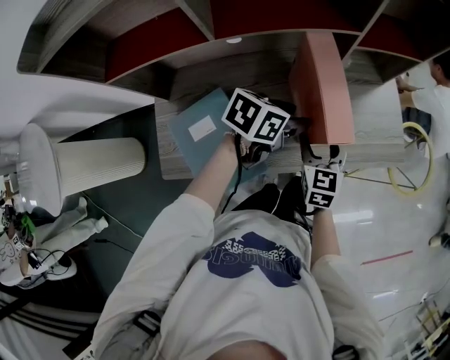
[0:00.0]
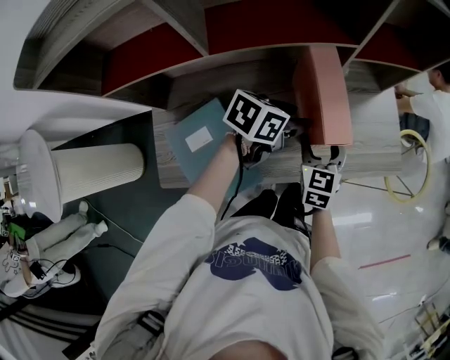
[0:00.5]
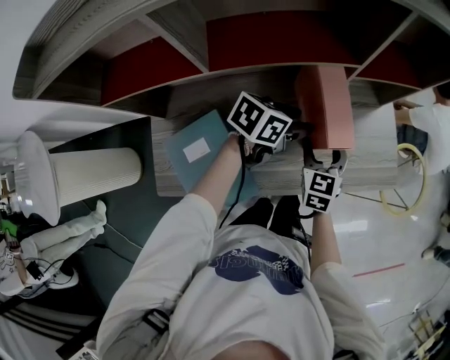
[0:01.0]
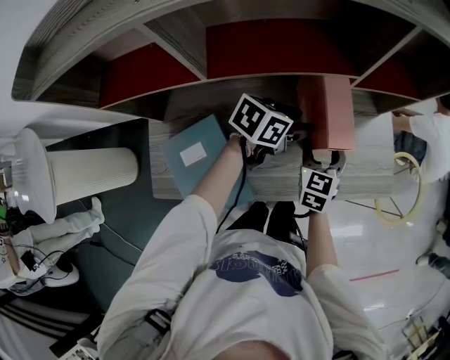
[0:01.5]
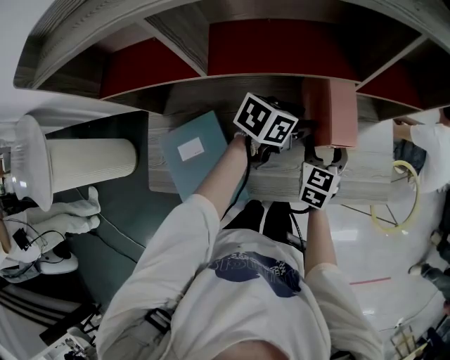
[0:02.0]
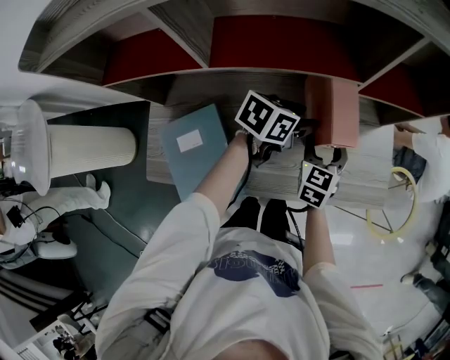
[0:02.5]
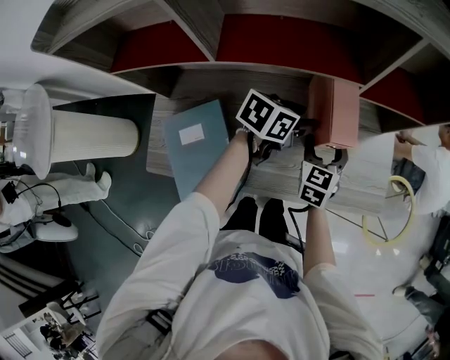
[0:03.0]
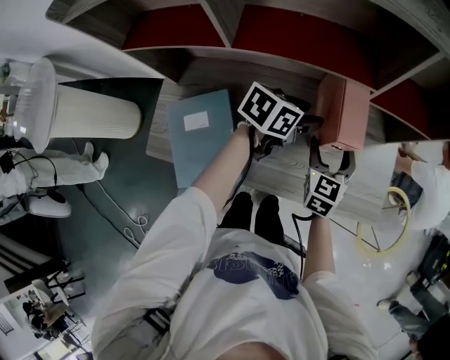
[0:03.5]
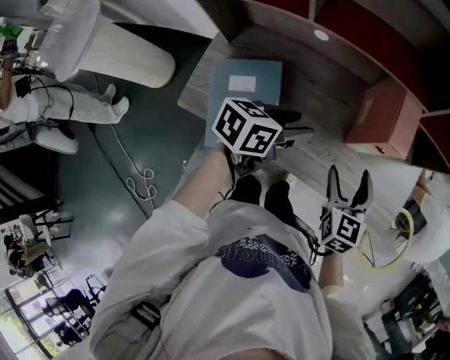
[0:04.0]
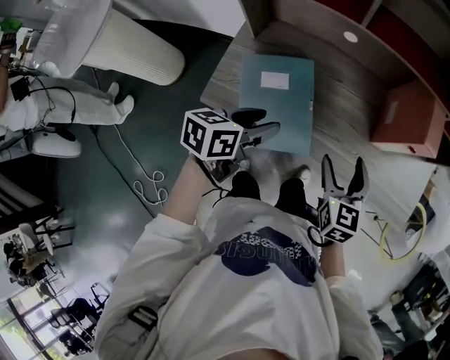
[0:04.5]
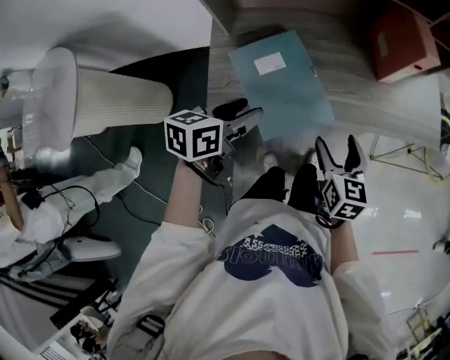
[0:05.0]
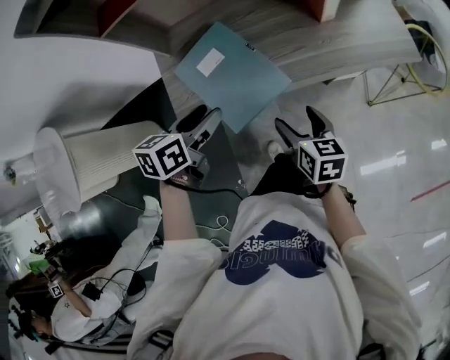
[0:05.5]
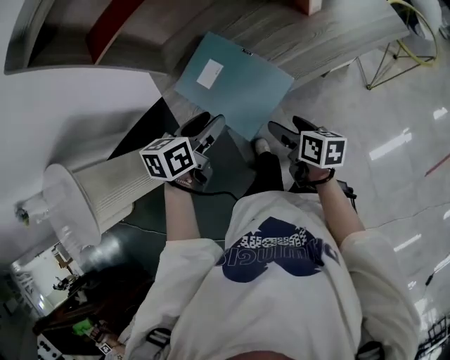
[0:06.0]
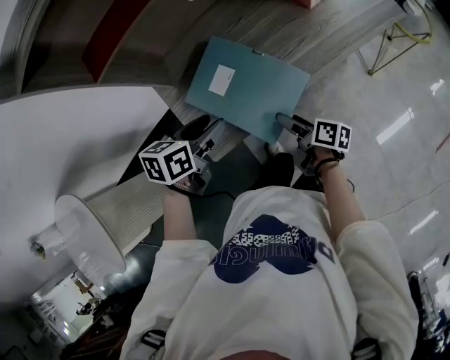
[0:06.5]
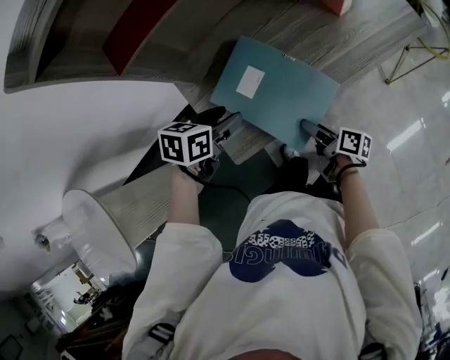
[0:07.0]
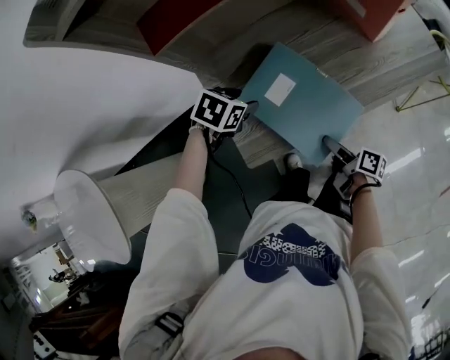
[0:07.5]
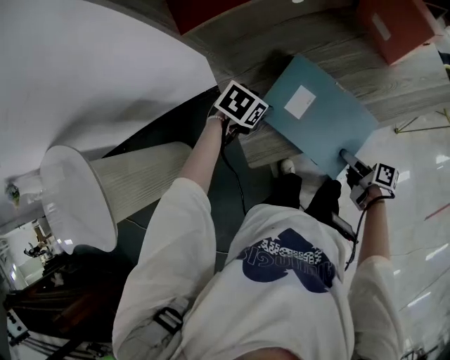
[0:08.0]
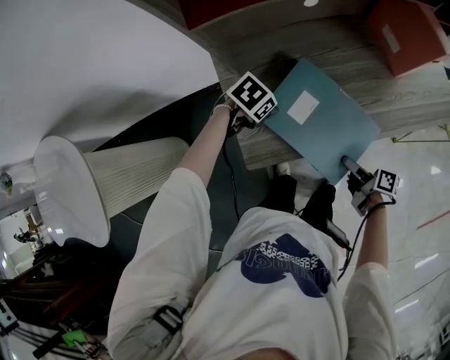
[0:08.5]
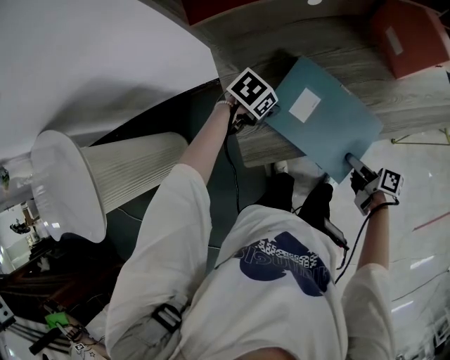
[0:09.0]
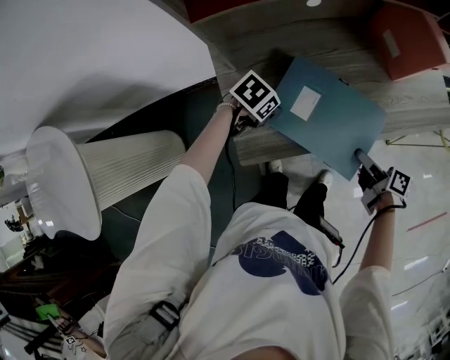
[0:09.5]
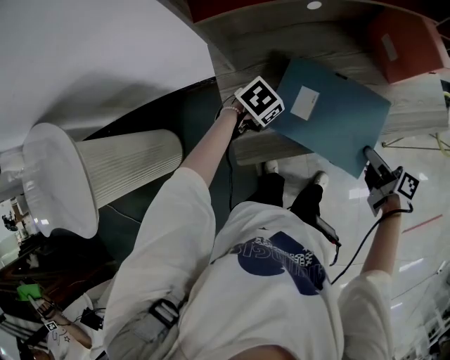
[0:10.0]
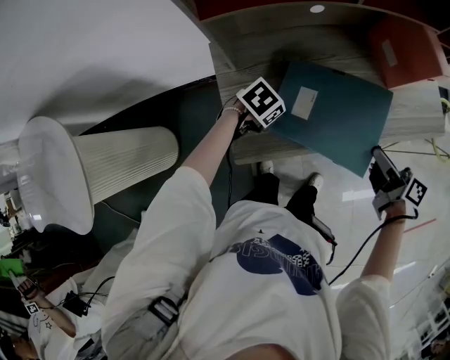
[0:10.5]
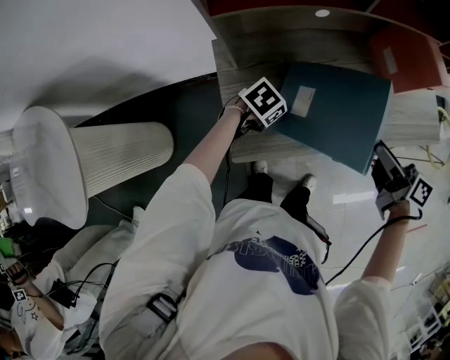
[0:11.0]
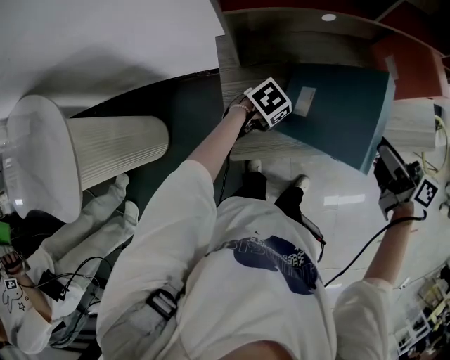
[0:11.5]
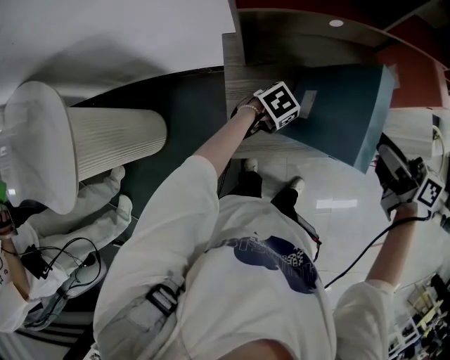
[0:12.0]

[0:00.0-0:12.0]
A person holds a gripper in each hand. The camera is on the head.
0:00.0 to 0:02.0: The grippers both shift forward by some 10 cm.
0:02.0 to 0:04.0: The right gripper shifts by approximately 15 cm, and rotates about 30 degrees. Meanwhile the left gripper changes place by roughly 20 cm, and rotates some 30 degrees.
0:04.0 to 0:06.0: The right gripper travels backward, to the left and downward by roughly 35 cm, and twists about 60 degrees clockwise, seen from behind, while the left gripper shifts about 30 cm to the left and backward, and changes its angle by about 20 degrees.
0:06.0 to 0:08.0: The right gripper travels downward by some 5 cm. Meanwhile the left gripper heads to the left, downward and forward, covering roughly 20 cm, and changes its angle by about 40 degrees.
0:08.0 to 0:10.0: The right gripper travels upward by some 10 cm.
0:10.0 to 0:12.0: The right gripper moves upward, about 20 cm, and turns by about 30 degrees.

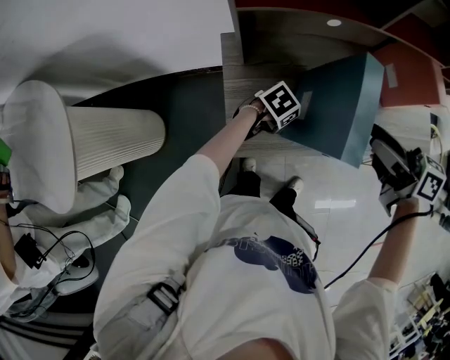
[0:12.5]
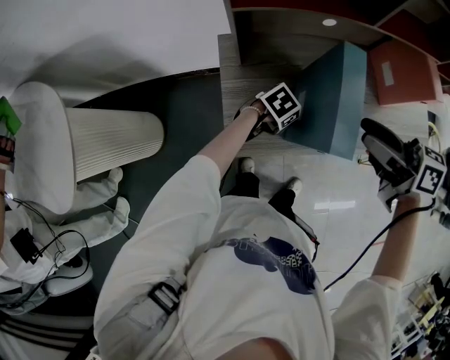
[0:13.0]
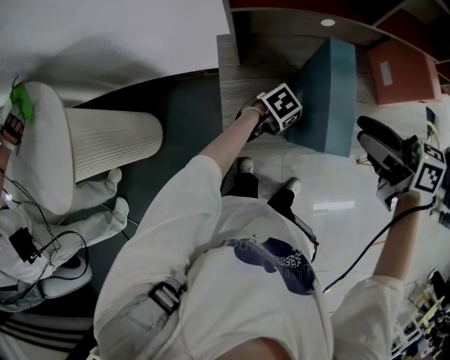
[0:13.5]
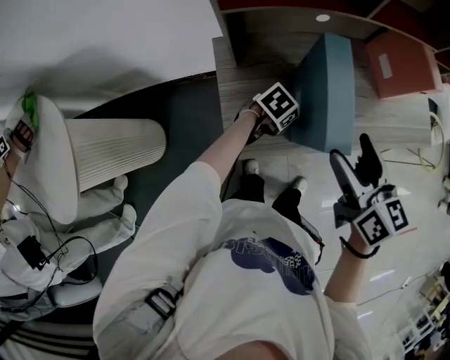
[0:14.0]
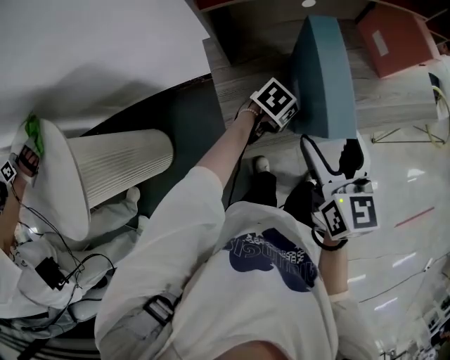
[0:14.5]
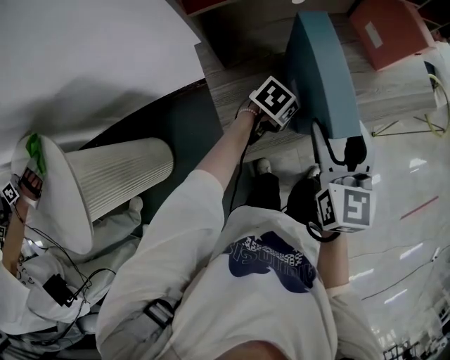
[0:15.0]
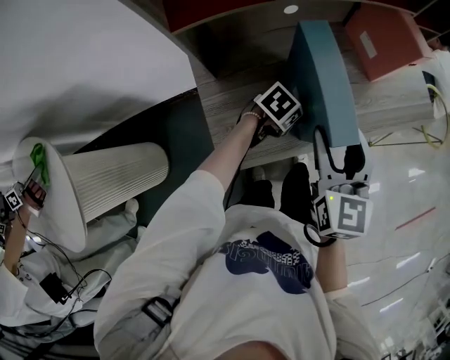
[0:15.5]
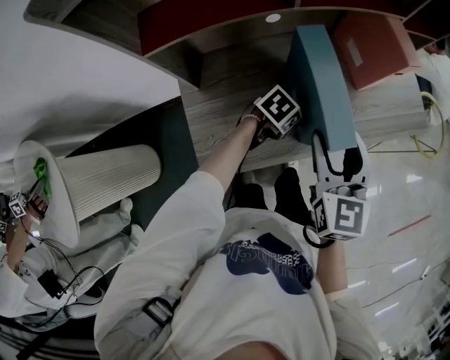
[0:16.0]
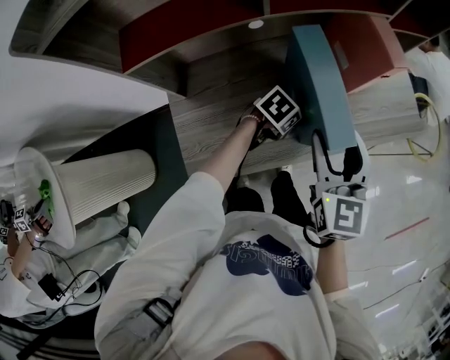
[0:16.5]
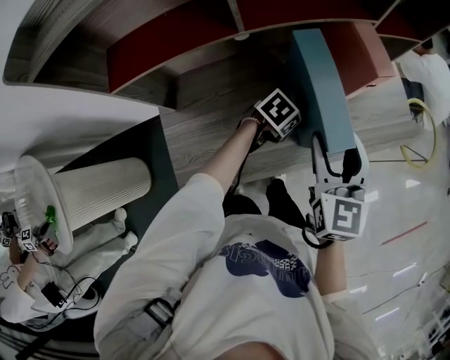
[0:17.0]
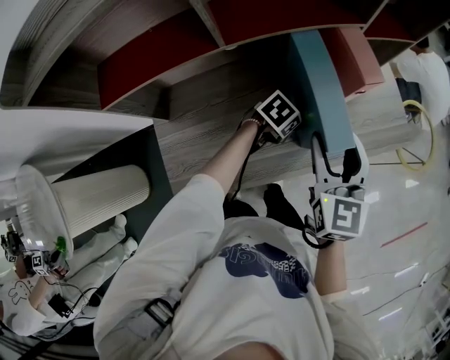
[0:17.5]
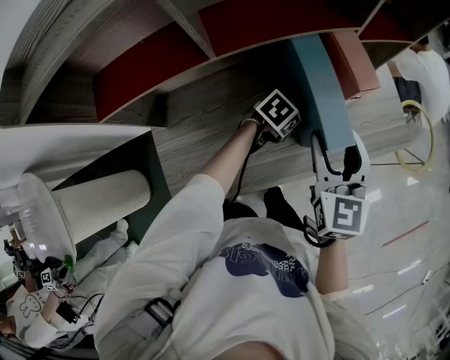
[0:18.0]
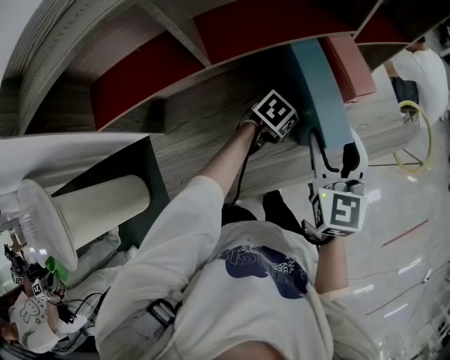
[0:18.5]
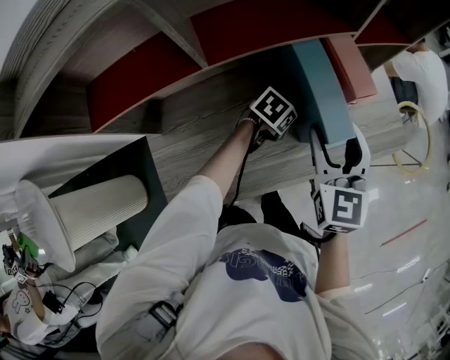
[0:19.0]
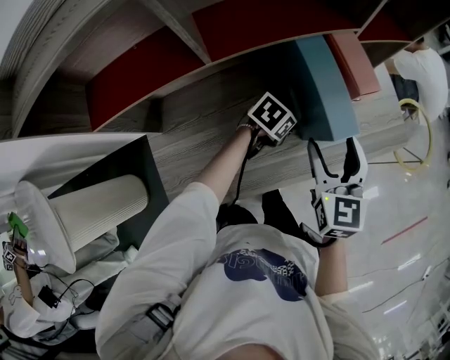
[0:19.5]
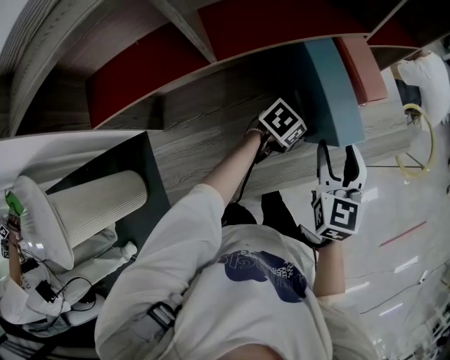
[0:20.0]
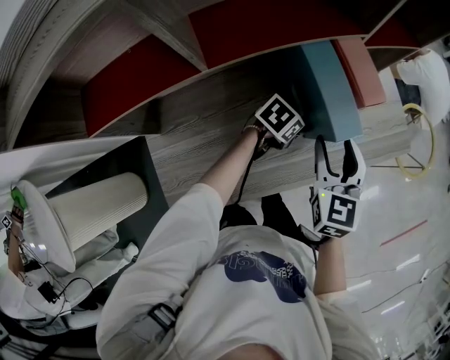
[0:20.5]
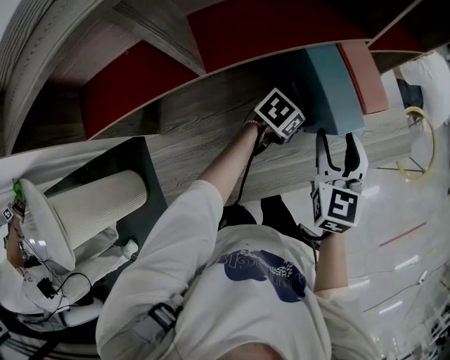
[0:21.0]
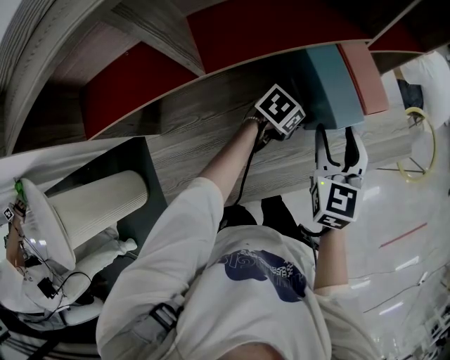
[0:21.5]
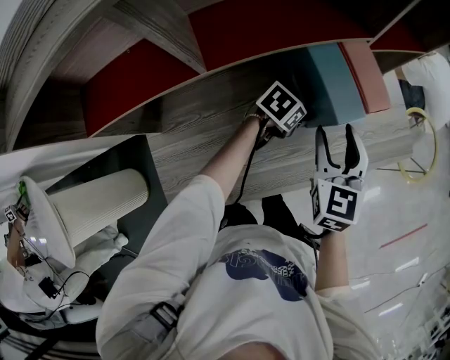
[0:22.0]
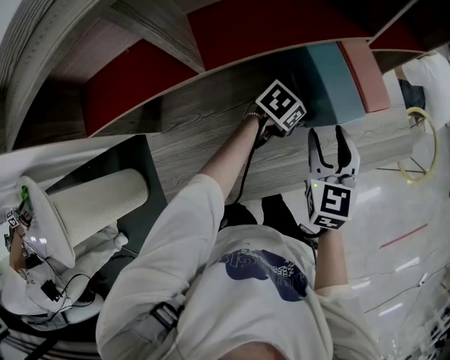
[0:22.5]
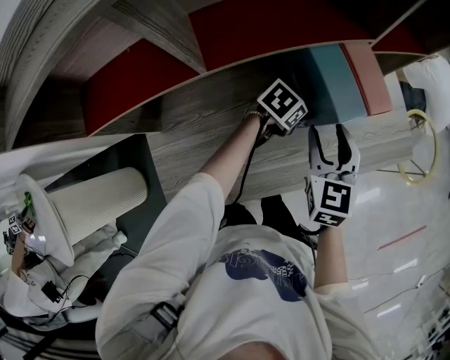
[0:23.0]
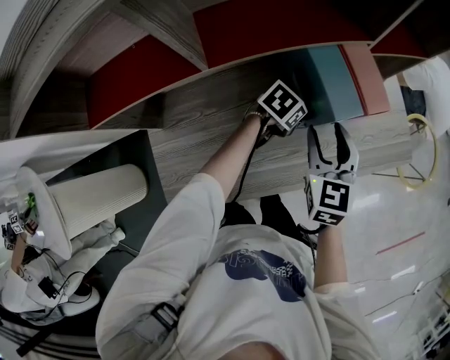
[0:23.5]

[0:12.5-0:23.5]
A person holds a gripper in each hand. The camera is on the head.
0:12.5 to 0:14.5: The right gripper changes place by about 10 cm, turns by approximately 50 degrees, and opens its fingers.
0:14.5 to 0:16.0: The grippers both shift forward and to the right by some 15 cm.
0:16.0 to 0:18.0: Both grippers travel together forward, approximately 15 cm.
0:18.0 to 0:20.0: The right gripper shifts some 5 cm downward.
0:20.0 to 0:21.5: The left gripper changes place by approximately 5 cm. The right gripper ends up roughly 5 cm from where it was.
0:21.5 to 0:23.5: The grippers move only a little.

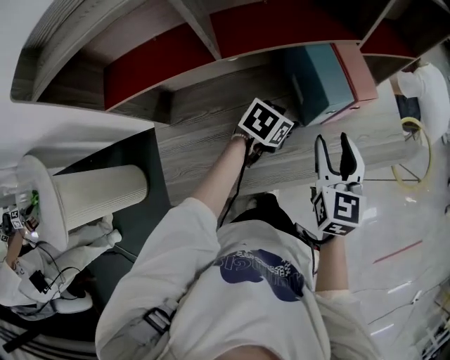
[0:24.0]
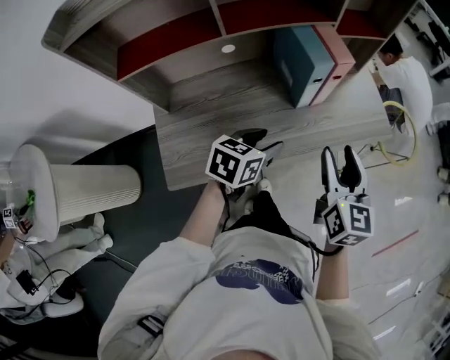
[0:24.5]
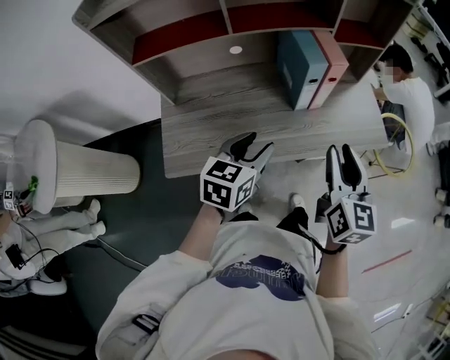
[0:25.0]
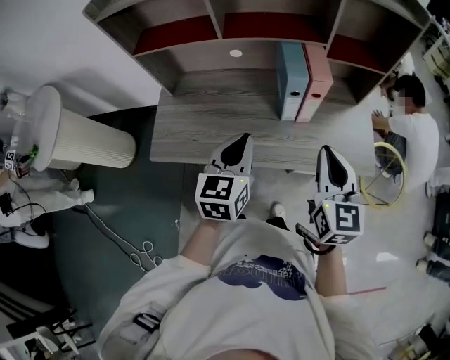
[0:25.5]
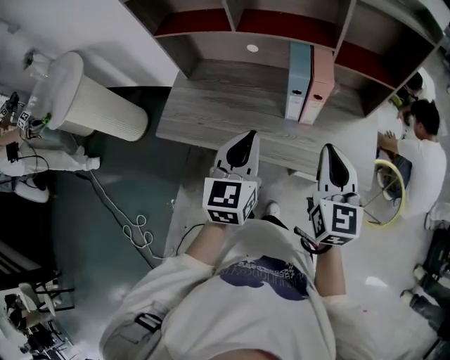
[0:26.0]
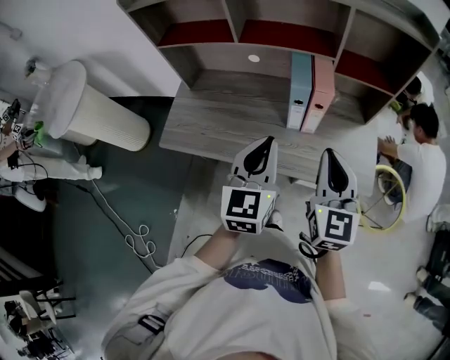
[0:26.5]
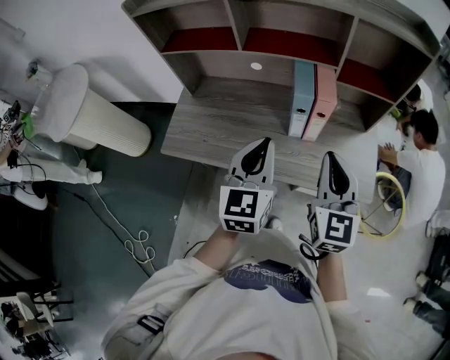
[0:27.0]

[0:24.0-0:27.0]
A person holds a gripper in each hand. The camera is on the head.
0:24.0 to 0:25.5: The left gripper goes roughly 20 cm upward, angles its fingers upward, by roughly 30 degrees, and closes up; the right gripper ends up about 20 cm from where it was, turns by about 20 degrees, and closes up.
0:25.5 to 0:27.0: The left gripper travels upward and to the right by approximately 10 cm.
